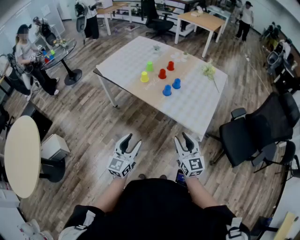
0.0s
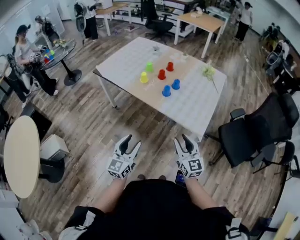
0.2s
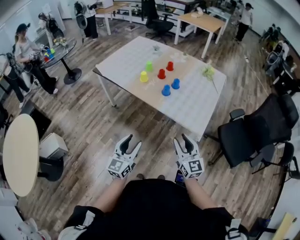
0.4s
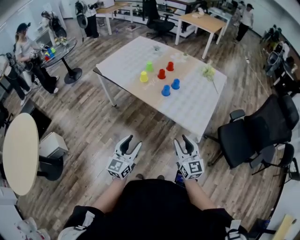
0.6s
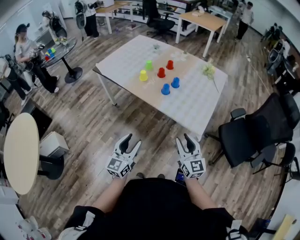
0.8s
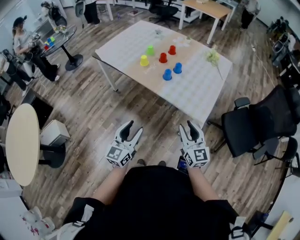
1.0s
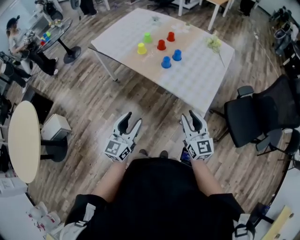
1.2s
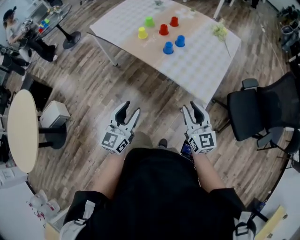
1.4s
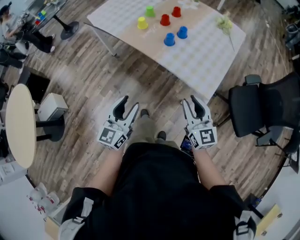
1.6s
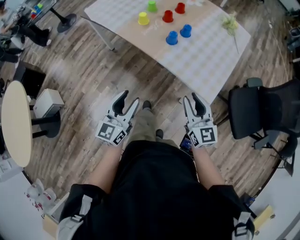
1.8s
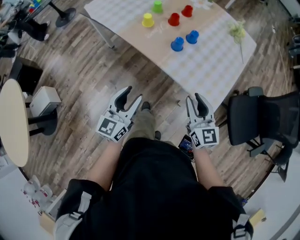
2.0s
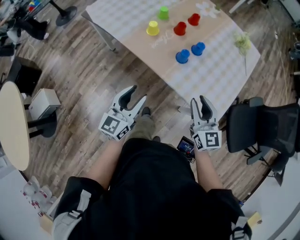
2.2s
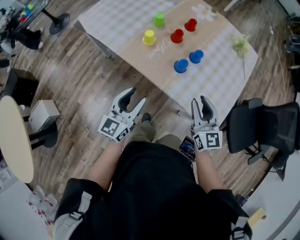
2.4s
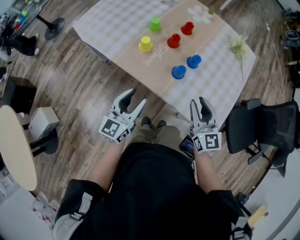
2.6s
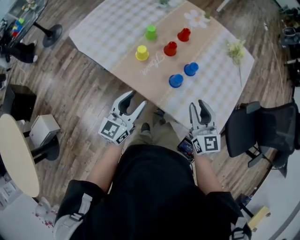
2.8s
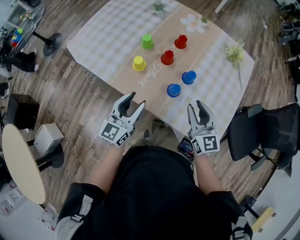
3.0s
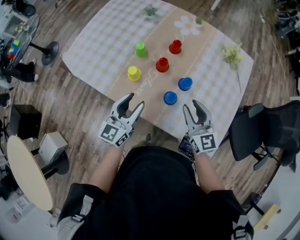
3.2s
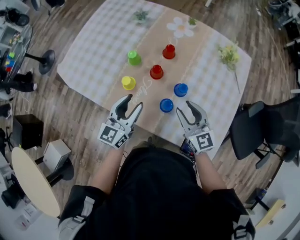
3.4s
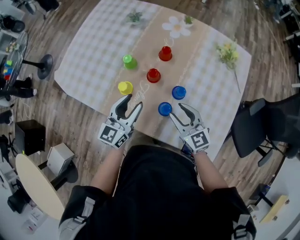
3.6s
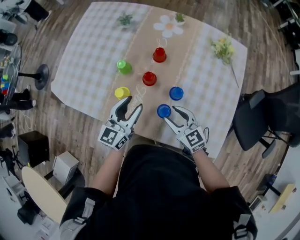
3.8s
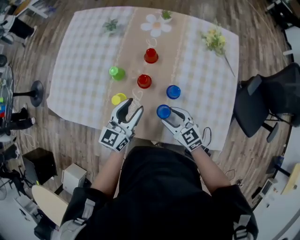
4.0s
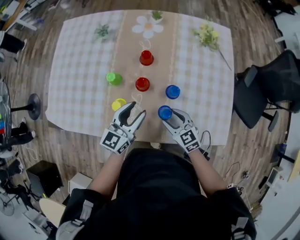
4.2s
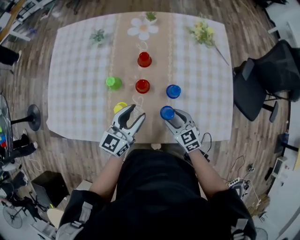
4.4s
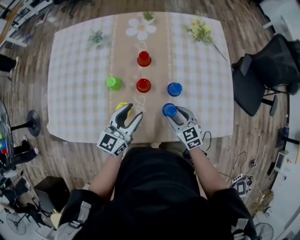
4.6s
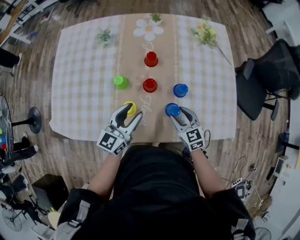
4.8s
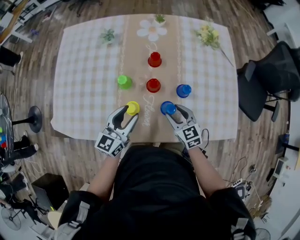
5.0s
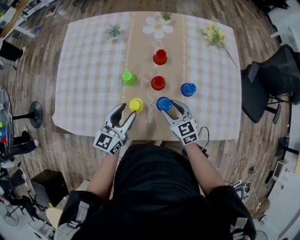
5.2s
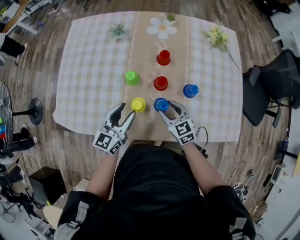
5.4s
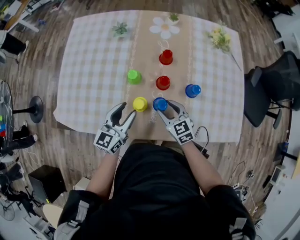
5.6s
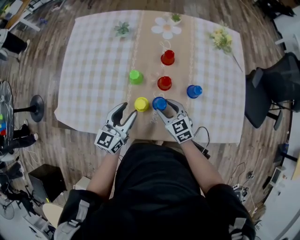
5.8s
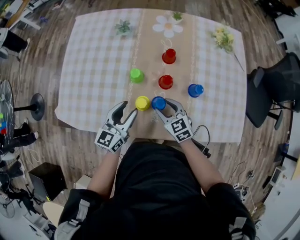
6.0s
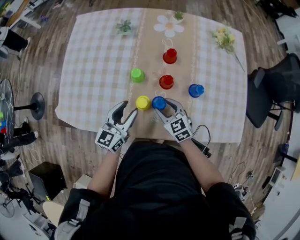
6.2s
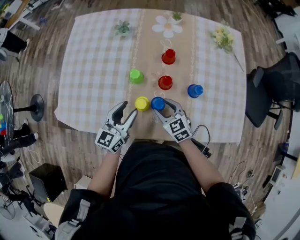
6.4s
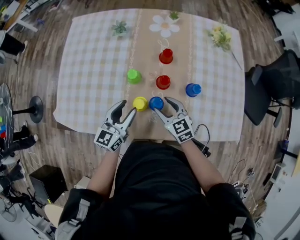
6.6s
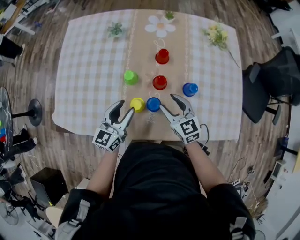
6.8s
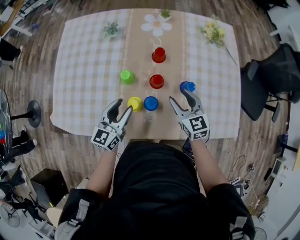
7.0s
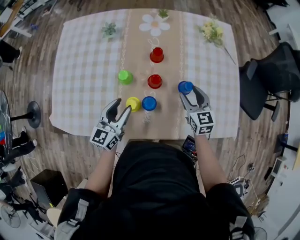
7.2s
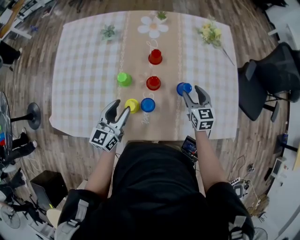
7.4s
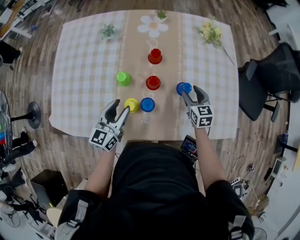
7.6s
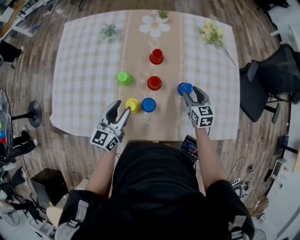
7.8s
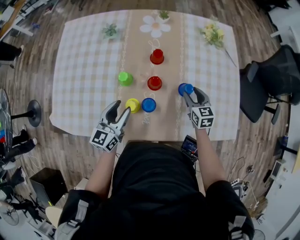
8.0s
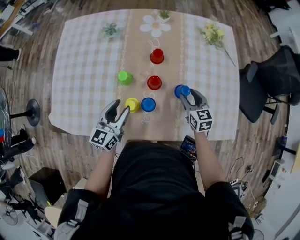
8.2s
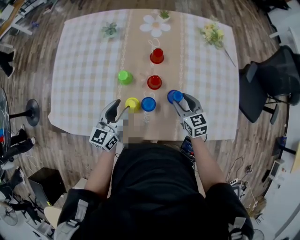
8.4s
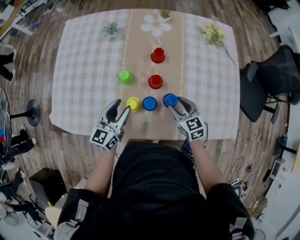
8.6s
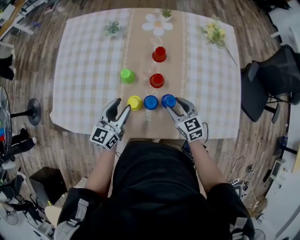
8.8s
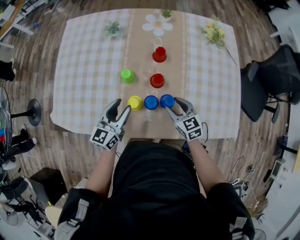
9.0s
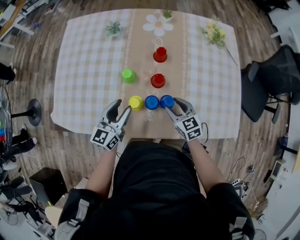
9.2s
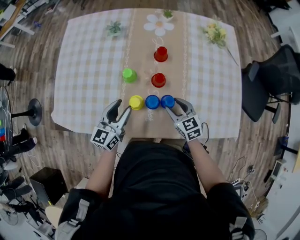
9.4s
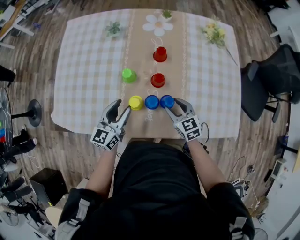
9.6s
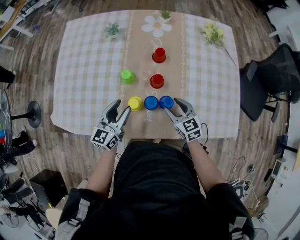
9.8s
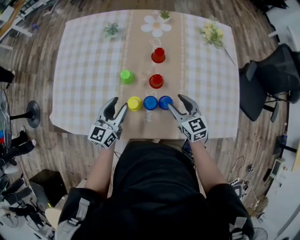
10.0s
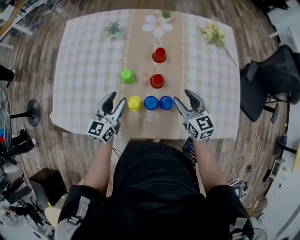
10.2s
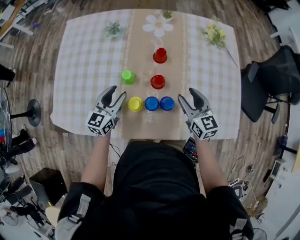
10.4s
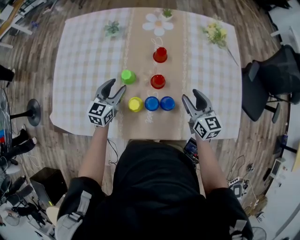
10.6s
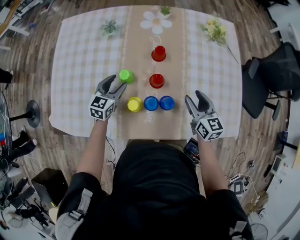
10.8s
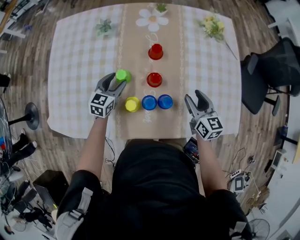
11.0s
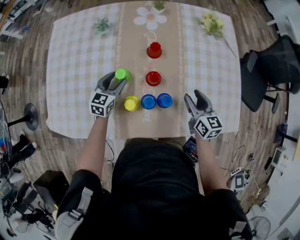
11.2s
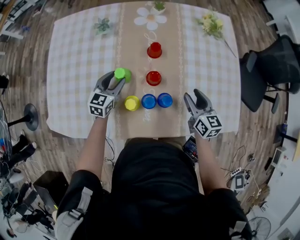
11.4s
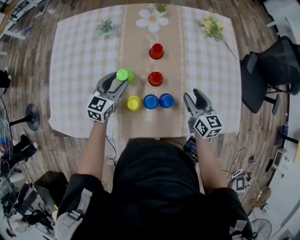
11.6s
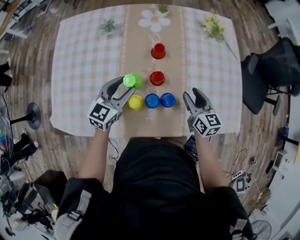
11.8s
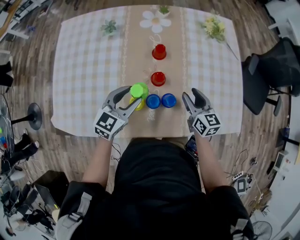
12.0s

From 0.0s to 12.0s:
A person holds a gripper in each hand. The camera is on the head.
From 0.0s to 1.6s: The right gripper travels to the right by approximately 5 cm.
From 1.6s to 3.0s: The grippers both shift forward by about 35 cm.
From 3.0s to 4.4s: The right gripper is displaced downward by roughly 15 cm, changes its angle by some 30 degrees, and opens up, while the left gripper travels forward by about 15 cm, and changes its angle by approximately 30 degrees.
From 4.4s to 6.0s: Both grippers travel together to the left, roughly 15 cm.
From 6.0s to 7.6s: The right gripper travels to the right and forward by roughly 20 cm, and turns by about 30 degrees.
From 7.6s to 9.0s: The right gripper moves to the left and backward, approximately 15 cm.
From 9.0s to 10.4s: The left gripper heads forward, covering some 5 cm; the right gripper shifts some 10 cm upward and to the right.
From 10.4s to 12.0s: The left gripper shifts about 5 cm to the right, goes downward and returns, roughly 10 cm each way, and turns by roughly 20 degrees.

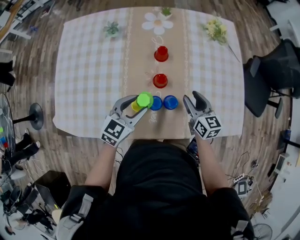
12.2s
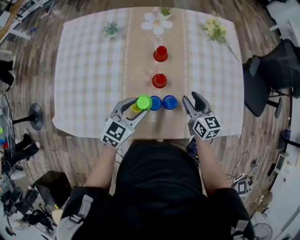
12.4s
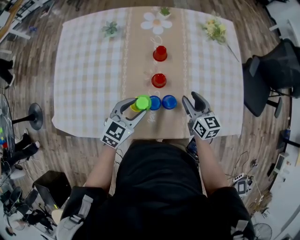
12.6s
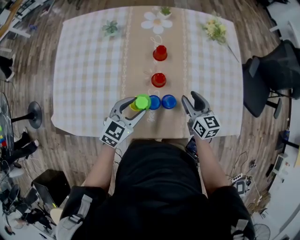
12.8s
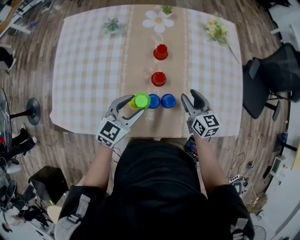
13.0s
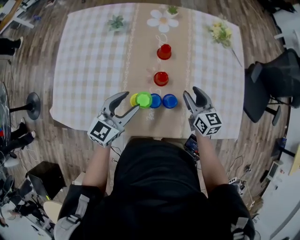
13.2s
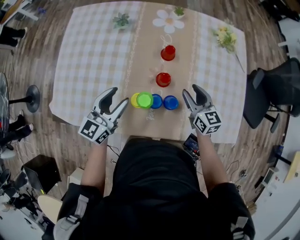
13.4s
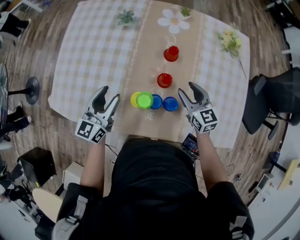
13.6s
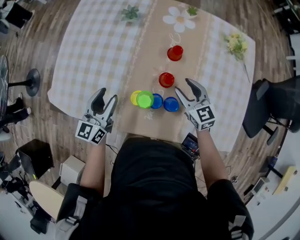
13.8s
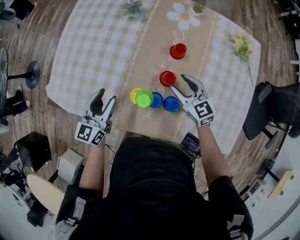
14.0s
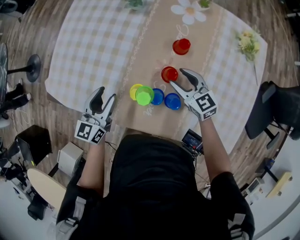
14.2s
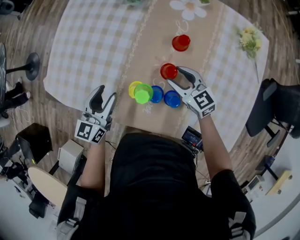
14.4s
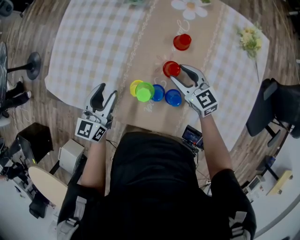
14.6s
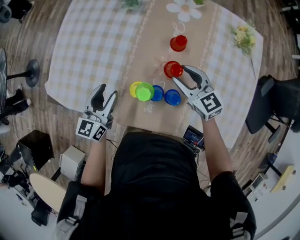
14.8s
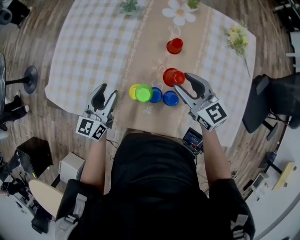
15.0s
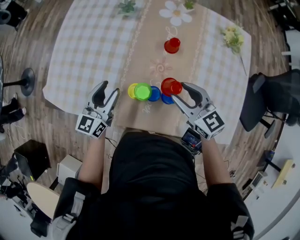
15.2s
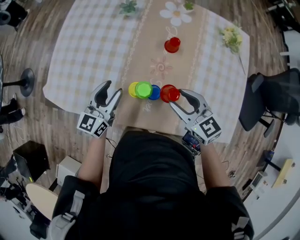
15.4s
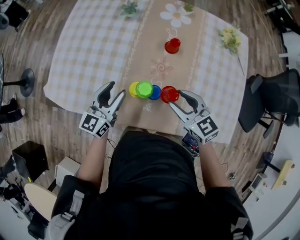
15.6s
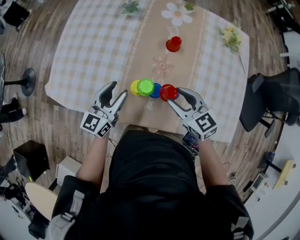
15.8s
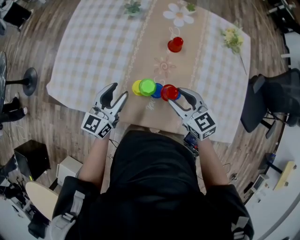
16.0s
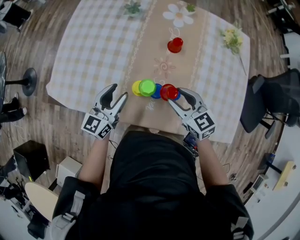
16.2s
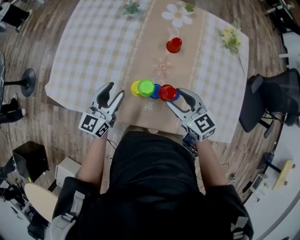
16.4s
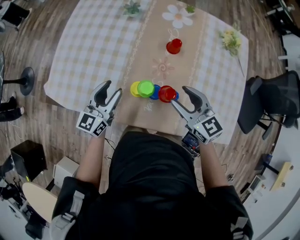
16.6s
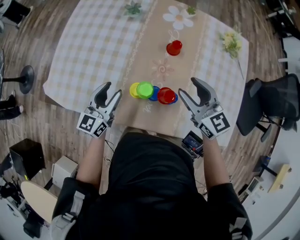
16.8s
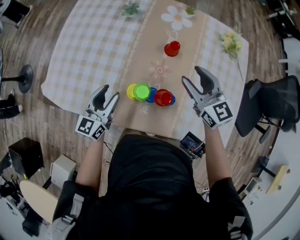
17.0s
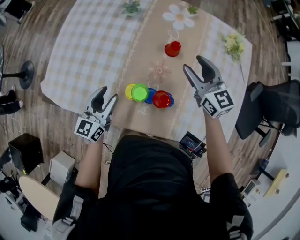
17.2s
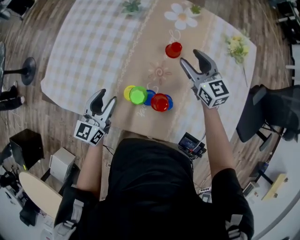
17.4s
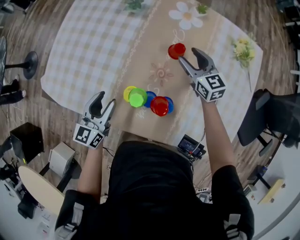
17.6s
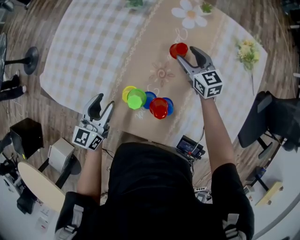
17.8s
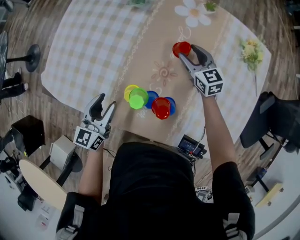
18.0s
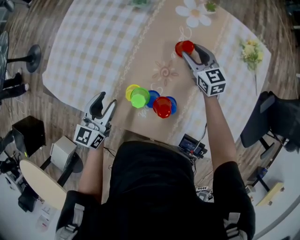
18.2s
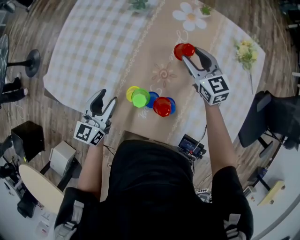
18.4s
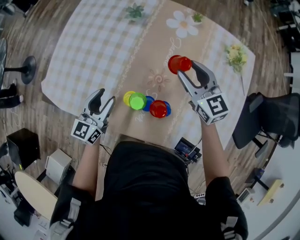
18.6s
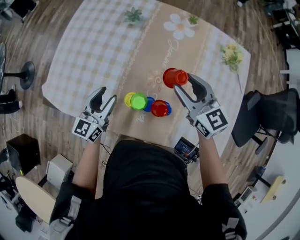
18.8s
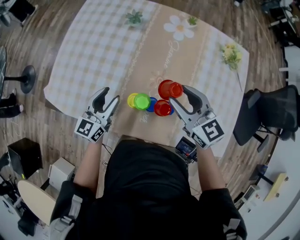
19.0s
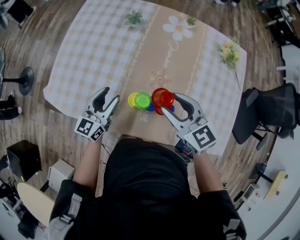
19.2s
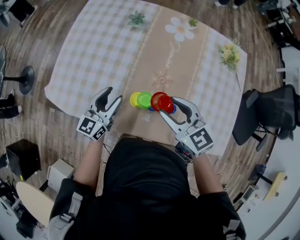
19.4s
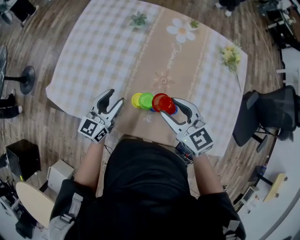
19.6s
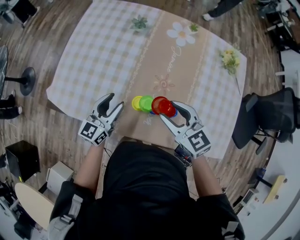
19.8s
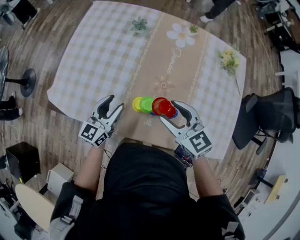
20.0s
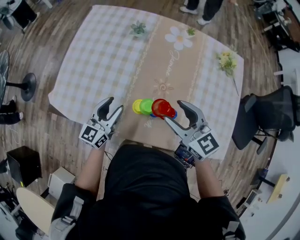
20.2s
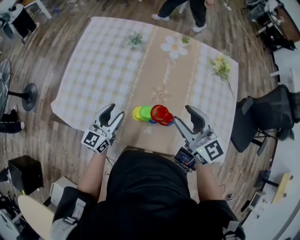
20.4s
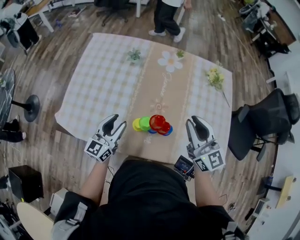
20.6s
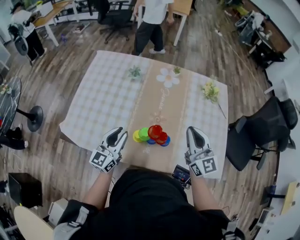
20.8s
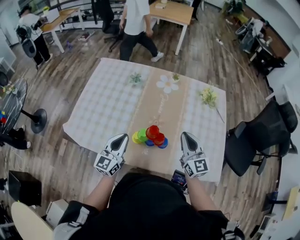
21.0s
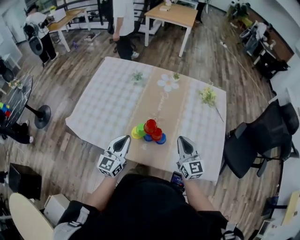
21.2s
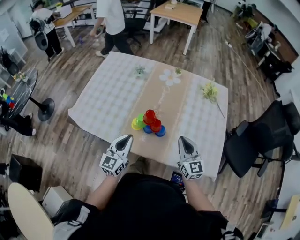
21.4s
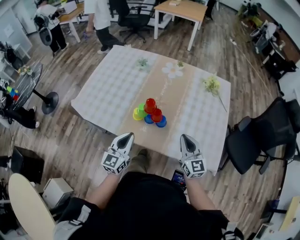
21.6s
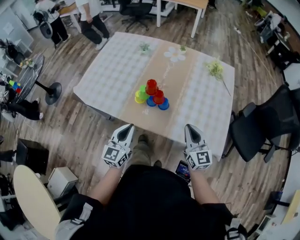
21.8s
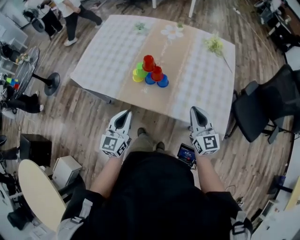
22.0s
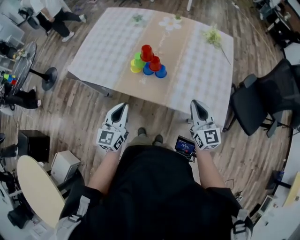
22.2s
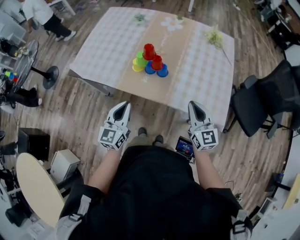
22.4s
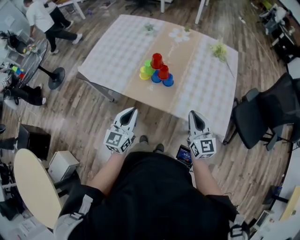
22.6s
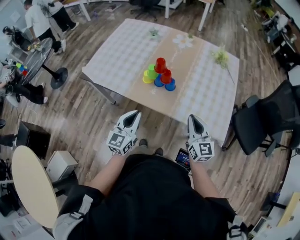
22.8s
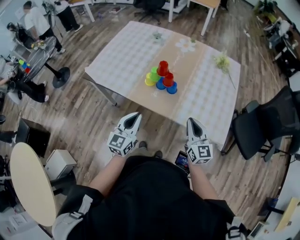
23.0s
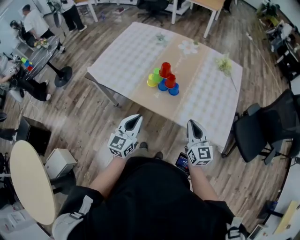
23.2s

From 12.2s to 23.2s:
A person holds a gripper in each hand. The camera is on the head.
From 12.2s to 13.8s: The right gripper changes place by some 10 cm, and swivels approximately 30 degrees. Meanwhile the left gripper changes place by roughly 15 cm, and changes its angle by about 40 degrees.
From 13.8s to 15.4s: The right gripper moves backward, upward and to the left, some 10 cm.
From 15.4s to 17.0s: The right gripper goes roughly 10 cm forward and to the right.
From 17.0s to 18.4s: The right gripper moves forward and downward, some 15 cm.
From 18.4s to 20.0s: The right gripper is displaced backward, to the left and upward by roughly 25 cm.
From 20.0s to 21.6s: The right gripper heads to the right and backward, covering roughly 25 cm, turns by roughly 30 degrees, and closes; the left gripper travels backward, to the right and upward by about 25 cm, and closes its fingers.
From 21.6s to 23.2s: The grippers both shift backward by about 10 cm.

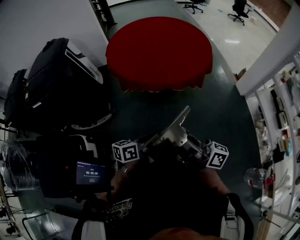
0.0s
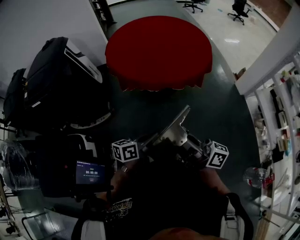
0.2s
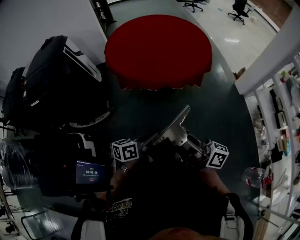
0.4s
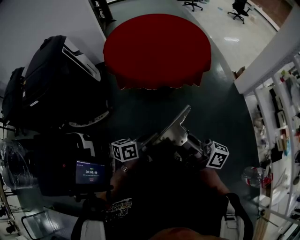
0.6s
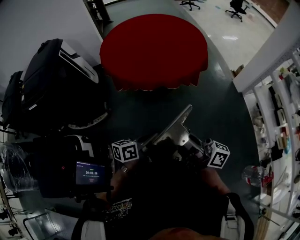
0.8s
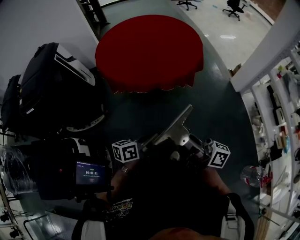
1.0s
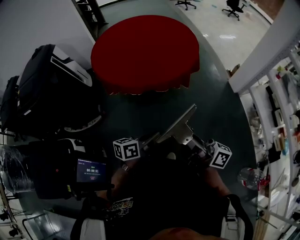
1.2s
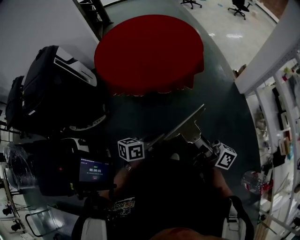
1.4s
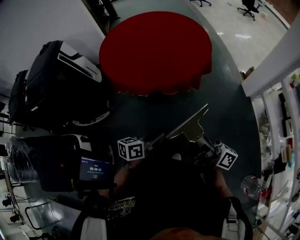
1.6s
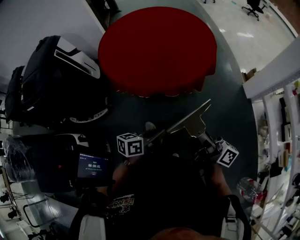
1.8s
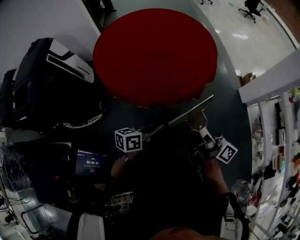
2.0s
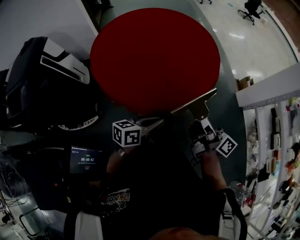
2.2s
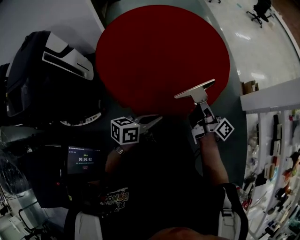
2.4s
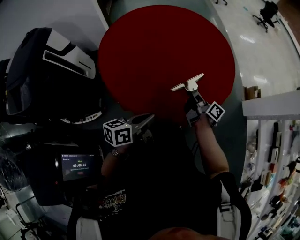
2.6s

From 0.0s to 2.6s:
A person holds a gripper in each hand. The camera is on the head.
From 0.0s to 1.2s: Both grippers move to the right, some 15 cm.
From 1.2s to 2.6s: The right gripper goes some 50 cm forward, and rotates about 30 degrees; the left gripper moves forward and to the left, roughly 40 cm.
